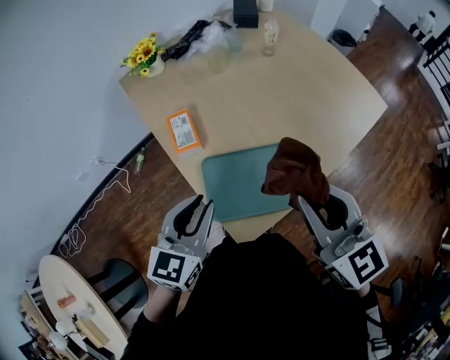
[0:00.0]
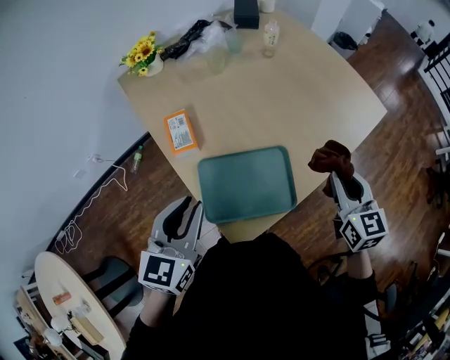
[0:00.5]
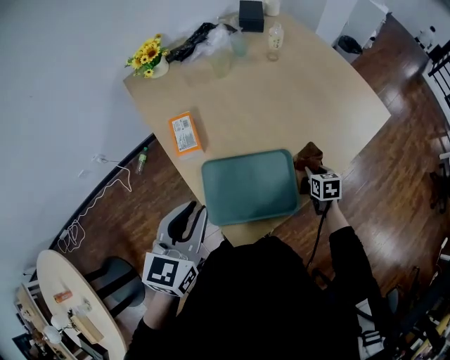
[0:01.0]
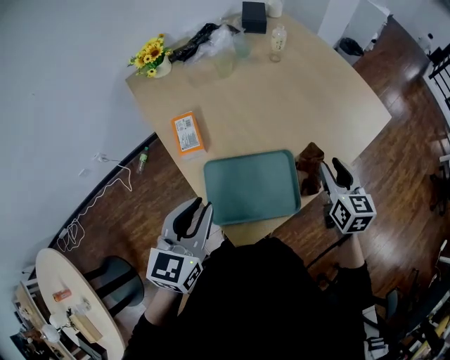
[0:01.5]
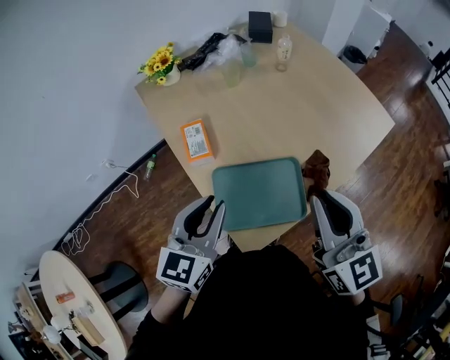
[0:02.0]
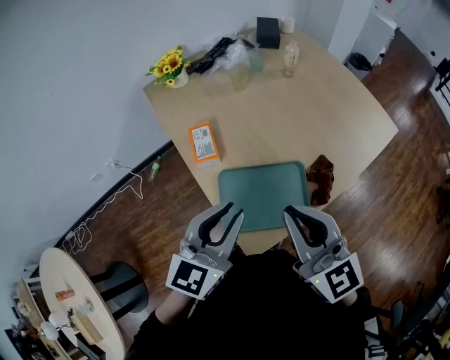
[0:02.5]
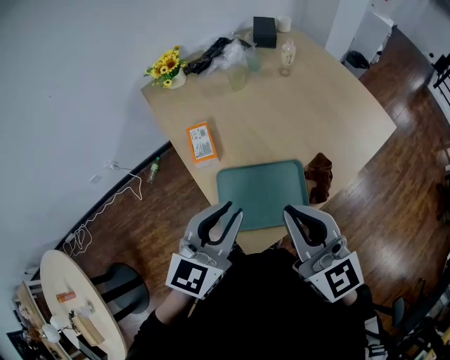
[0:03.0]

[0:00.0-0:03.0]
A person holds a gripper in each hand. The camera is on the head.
0:00.0 to 0:01.5: The right gripper shifts about 25 cm downward, to the right and forward, and turns by roughly 30 degrees.
0:01.5 to 0:03.0: The left gripper heads upward, covering some 5 cm; the right gripper travels to the left, upward and backward by some 25 cm, rotates roughly 30 degrees, and closes its fingers.

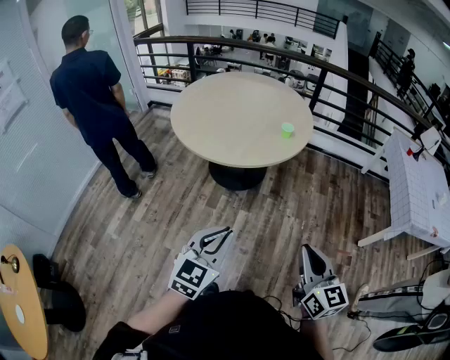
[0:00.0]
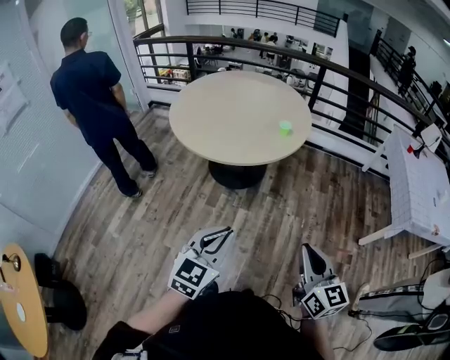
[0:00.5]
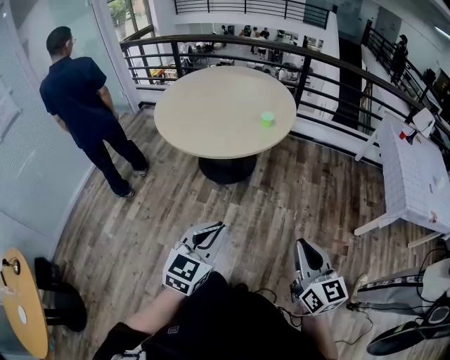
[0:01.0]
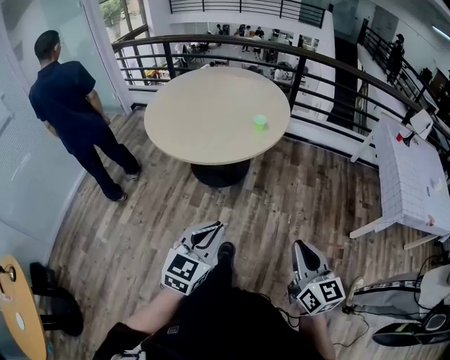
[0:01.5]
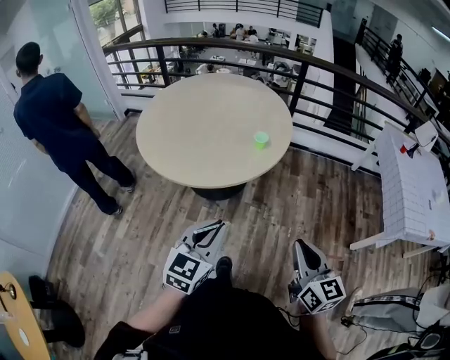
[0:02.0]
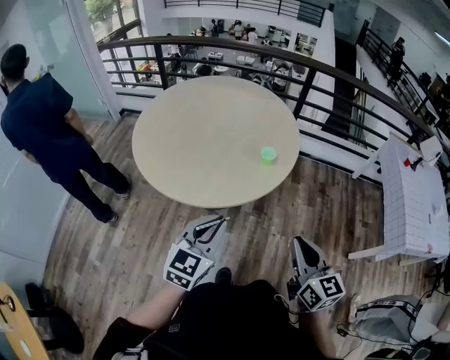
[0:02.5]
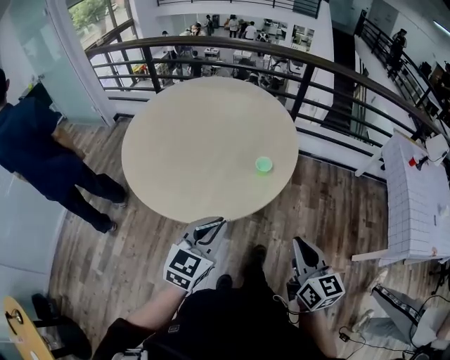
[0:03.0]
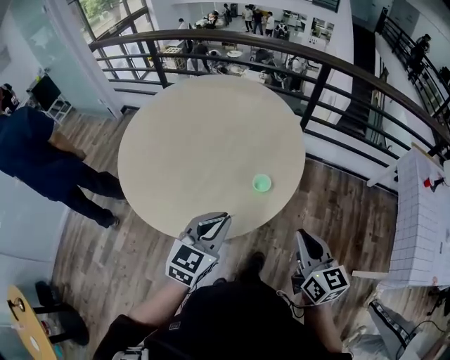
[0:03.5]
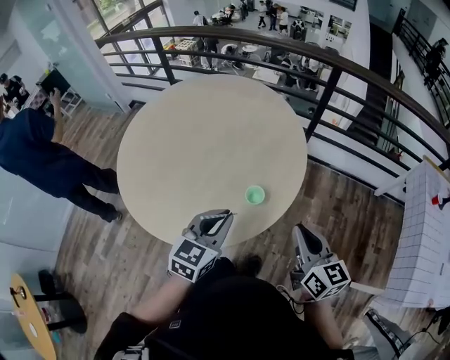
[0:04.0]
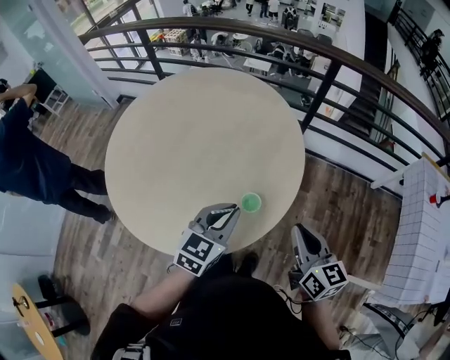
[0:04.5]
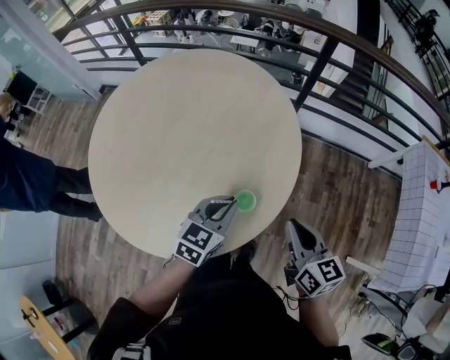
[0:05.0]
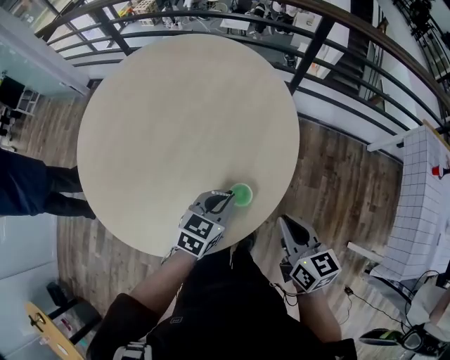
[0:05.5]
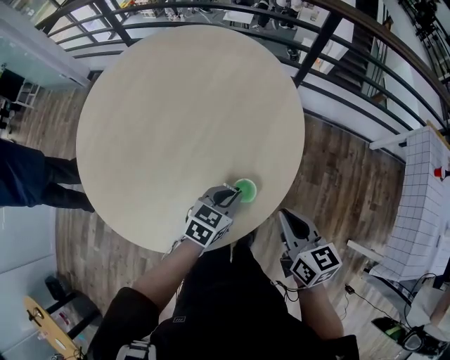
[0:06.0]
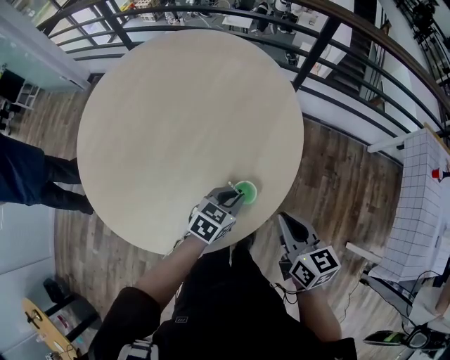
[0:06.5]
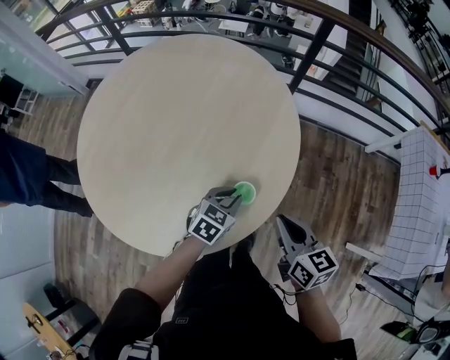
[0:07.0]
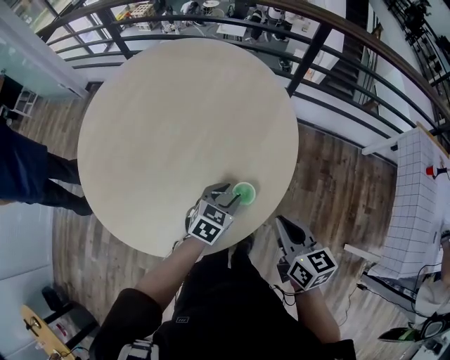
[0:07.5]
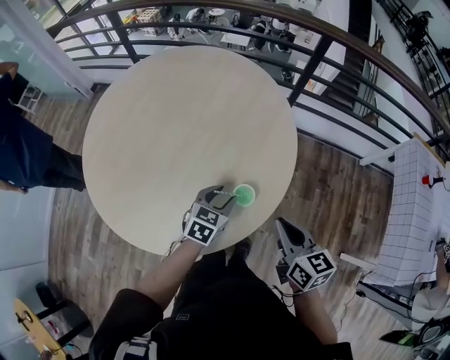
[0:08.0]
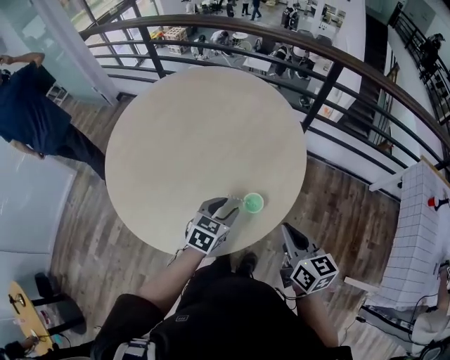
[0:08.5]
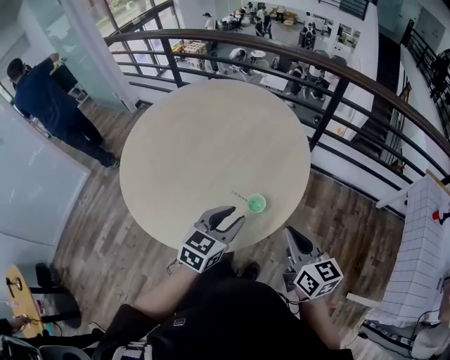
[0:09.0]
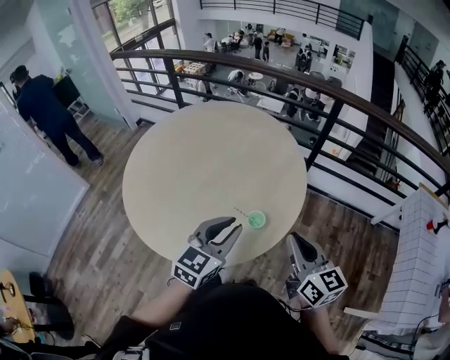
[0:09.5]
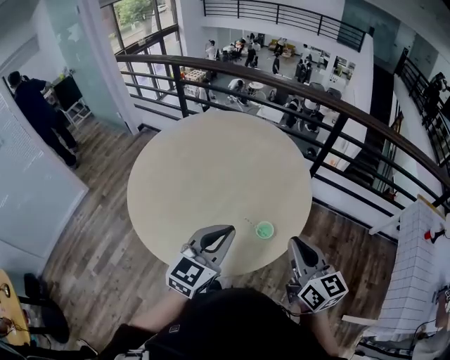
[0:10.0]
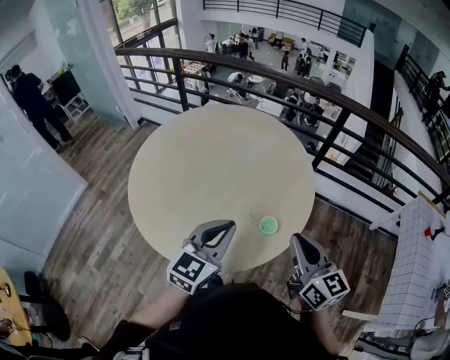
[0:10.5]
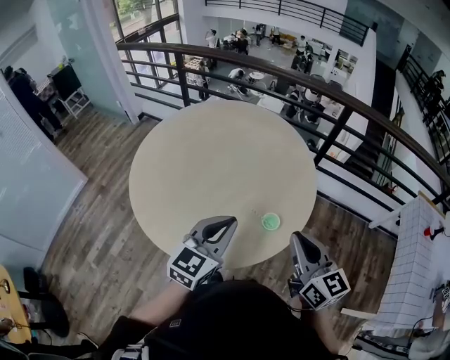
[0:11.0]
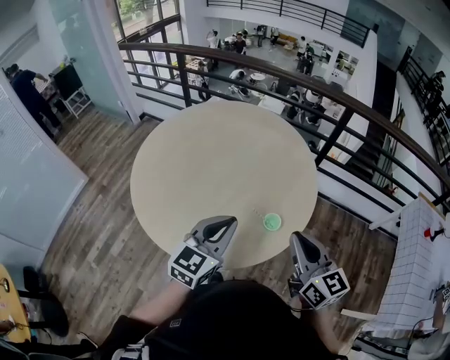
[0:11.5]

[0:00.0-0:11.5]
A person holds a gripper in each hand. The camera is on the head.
0:00.0 to 0:02.0: Both grippers move forward and to the right, some 20 cm.
0:02.0 to 0:04.0: Both grippers are carried forward, roughly 40 cm.
0:04.0 to 0:06.0: The left gripper goes about 25 cm downward and forward, and changes its angle by some 30 degrees; the right gripper travels downward and forward by about 15 cm.
0:06.0 to 0:07.5: The left gripper opens.
0:07.5 to 0:09.5: The left gripper is displaced upward and backward by some 30 cm, and changes its angle by approximately 30 degrees. Meanwhile the right gripper is displaced upward by approximately 15 cm, and changes its angle by approximately 20 degrees.
0:09.5 to 0:11.5: The grippers both shift to the left by some 10 cm.

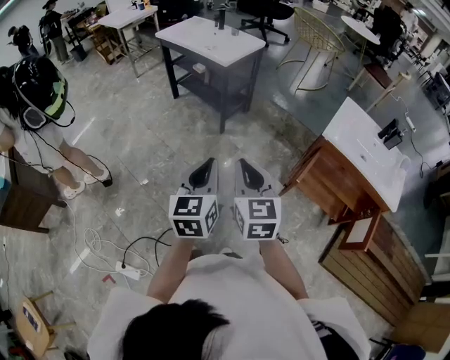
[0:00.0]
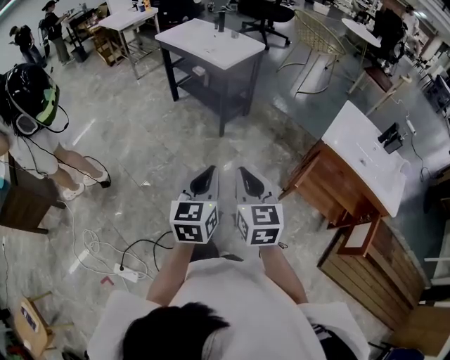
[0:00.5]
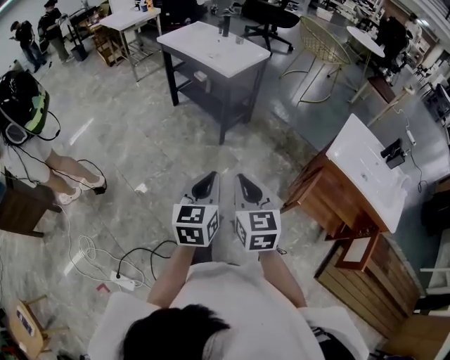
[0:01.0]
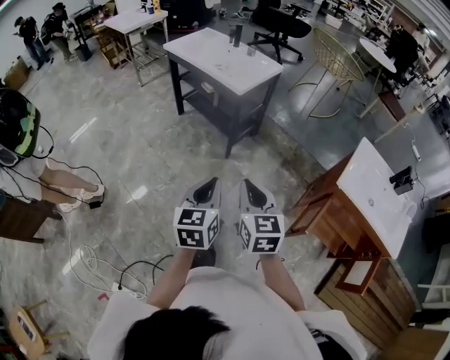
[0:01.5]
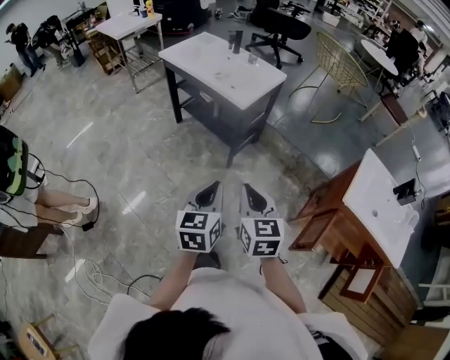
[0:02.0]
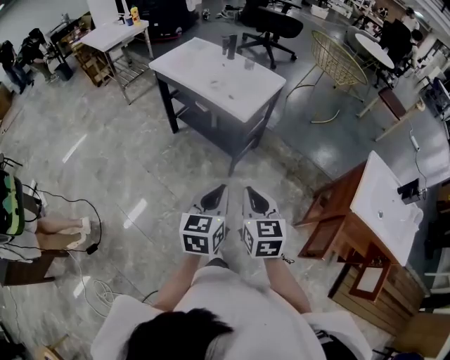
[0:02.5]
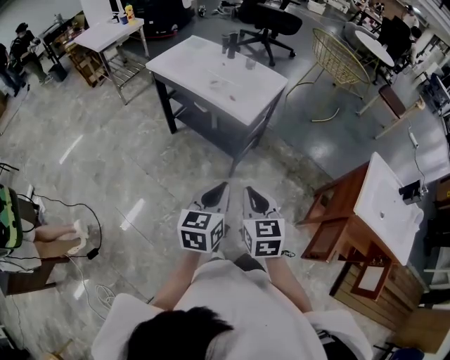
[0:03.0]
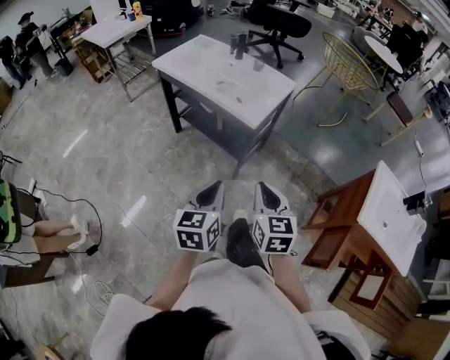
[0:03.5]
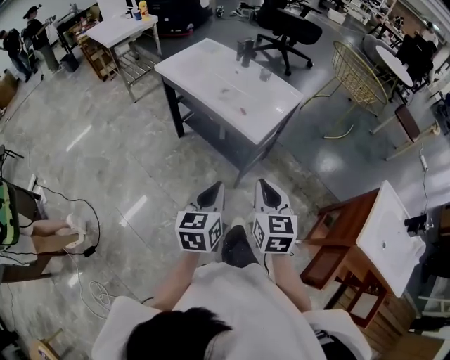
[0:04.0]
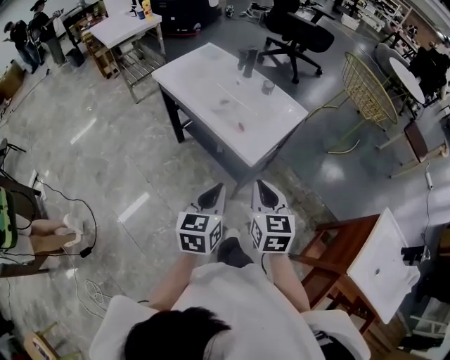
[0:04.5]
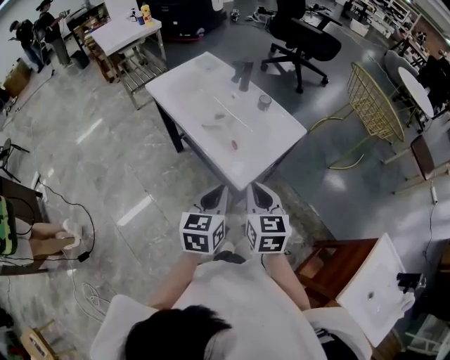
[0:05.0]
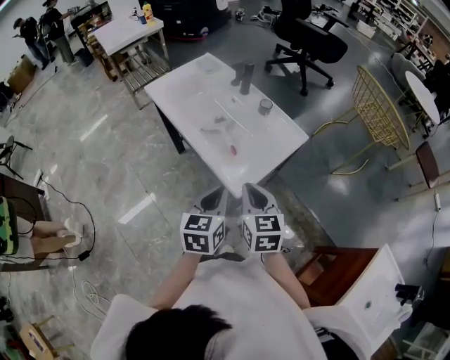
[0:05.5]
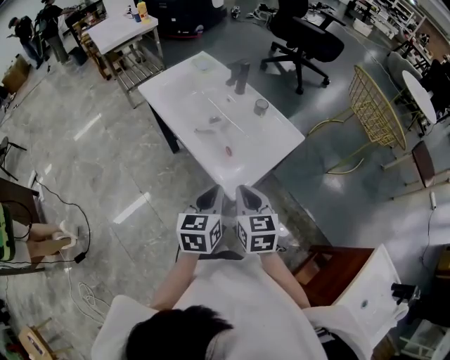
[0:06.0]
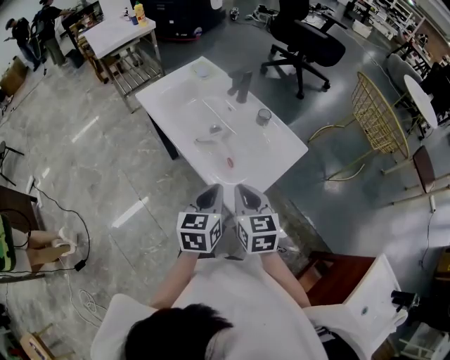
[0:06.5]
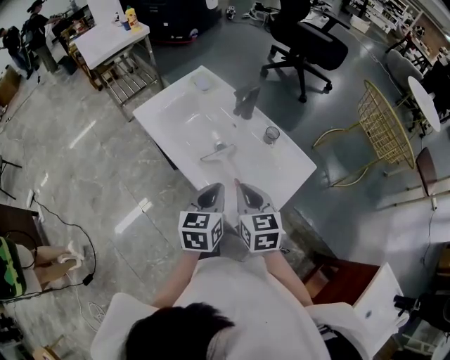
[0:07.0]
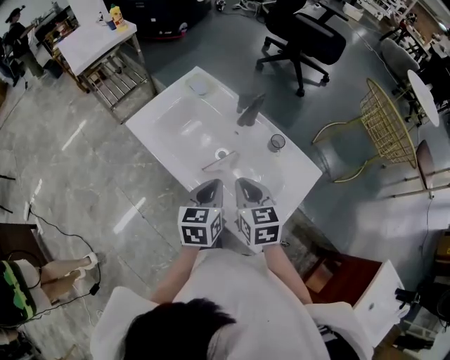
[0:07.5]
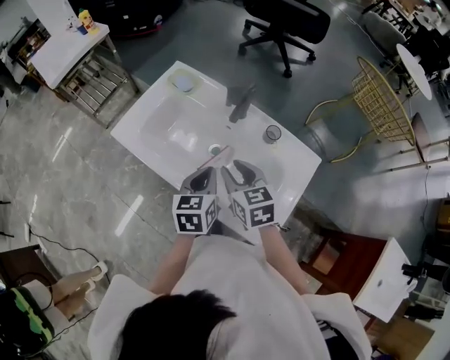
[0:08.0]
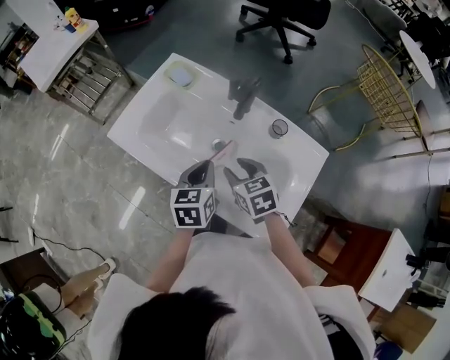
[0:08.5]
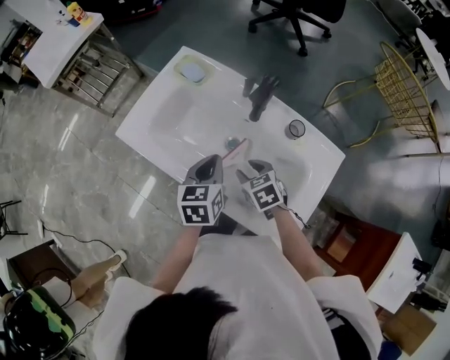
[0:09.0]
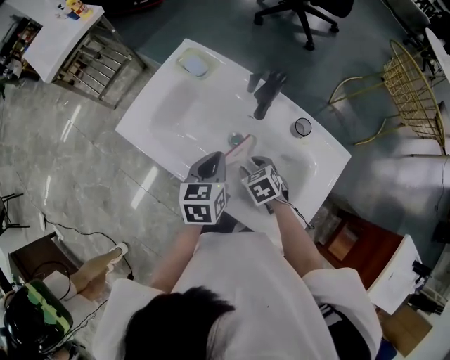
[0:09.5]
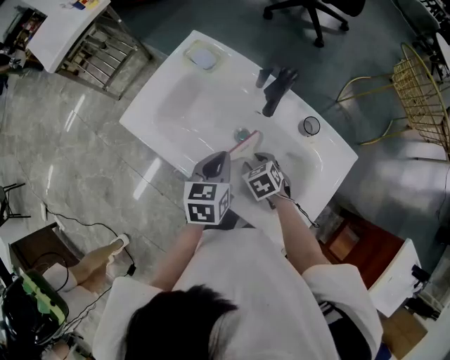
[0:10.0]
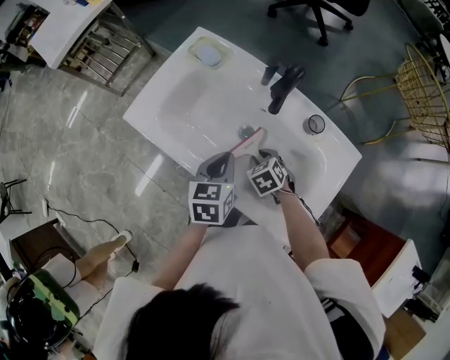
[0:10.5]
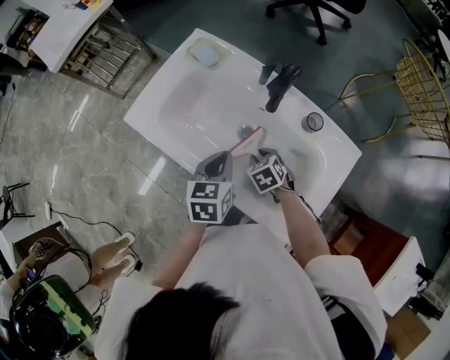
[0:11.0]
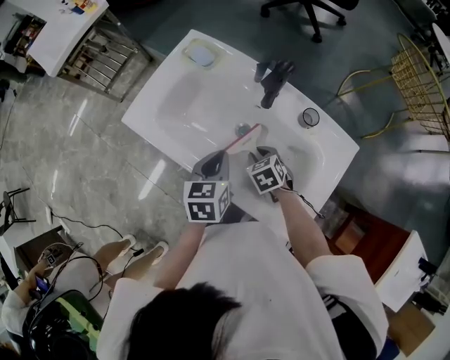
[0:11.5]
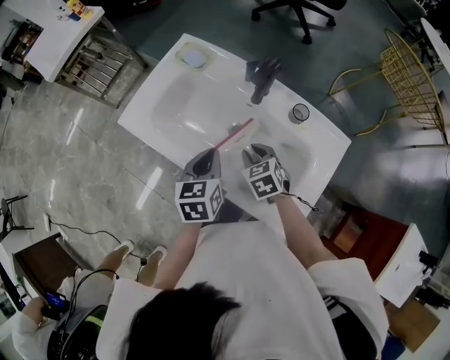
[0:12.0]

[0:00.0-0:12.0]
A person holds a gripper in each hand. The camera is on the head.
0:00.0 to 0:02.0: The two grippers go about 25 cm forward.
0:02.0 to 0:04.0: Both grippers move forward, roughly 20 cm.
0:04.0 to 0:06.0: The two grippers go about 25 cm forward.
0:06.0 to 0:08.0: Both grippers travel together forward, about 30 cm. The right gripper opens.
0:08.0 to 0:10.0: The left gripper is displaced forward and downward by approximately 10 cm. The right gripper goes some 20 cm downward, and tips its fingers downward by some 30 degrees.
0:10.0 to 0:12.0: The right gripper moves upward, roughly 5 cm.
